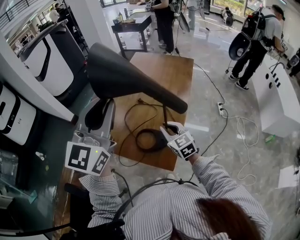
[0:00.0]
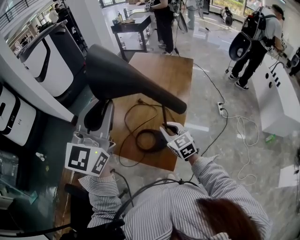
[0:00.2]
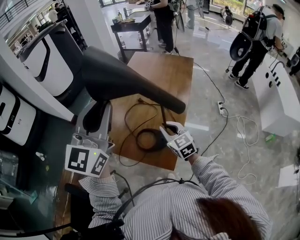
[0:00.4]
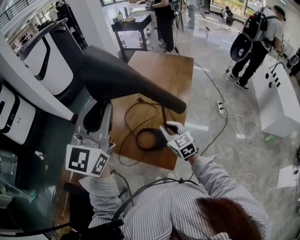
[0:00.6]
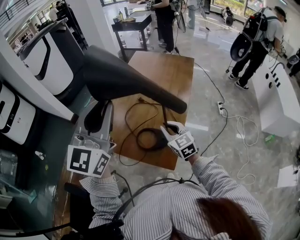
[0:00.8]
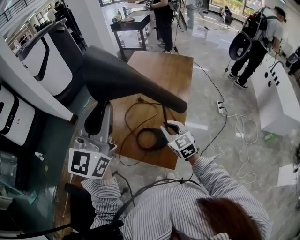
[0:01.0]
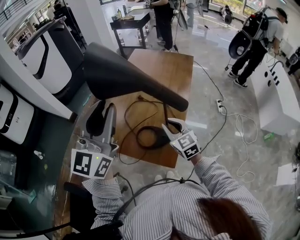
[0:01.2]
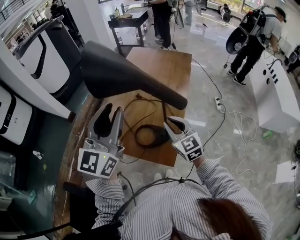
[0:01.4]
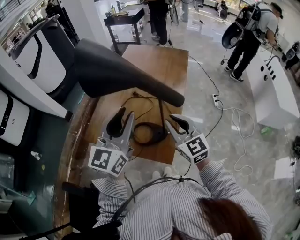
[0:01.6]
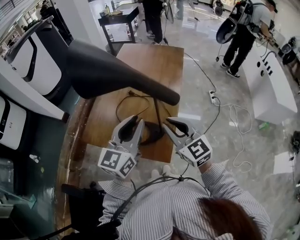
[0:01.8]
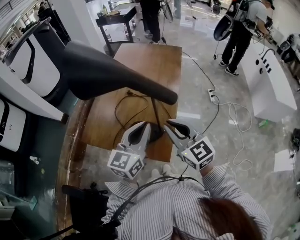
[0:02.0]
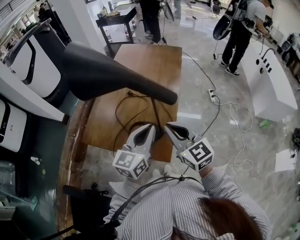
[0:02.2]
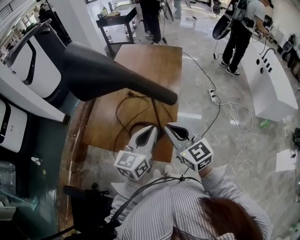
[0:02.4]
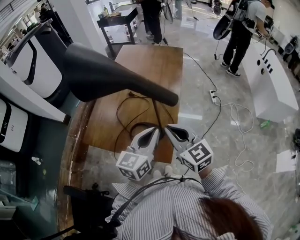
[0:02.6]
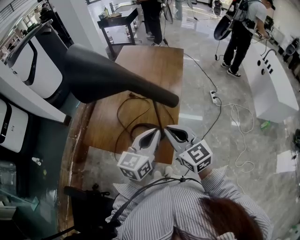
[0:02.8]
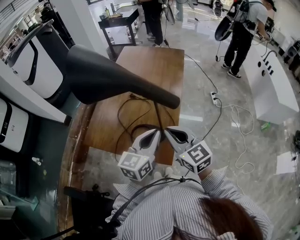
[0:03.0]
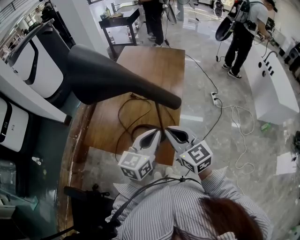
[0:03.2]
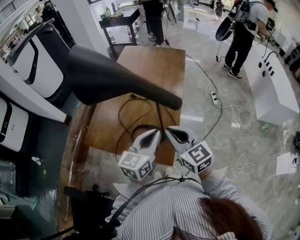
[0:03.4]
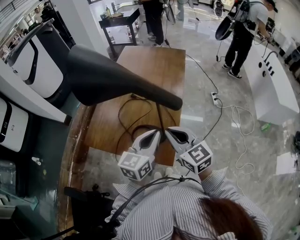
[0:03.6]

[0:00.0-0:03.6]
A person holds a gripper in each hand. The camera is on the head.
0:00.0 to 0:01.8: The right gripper moves upward and backward, about 10 cm. The left gripper shifts about 20 cm downward and to the right, and changes its angle by about 30 degrees.
0:01.8 to 0:03.6: The left gripper moves downward and to the right, approximately 10 cm.

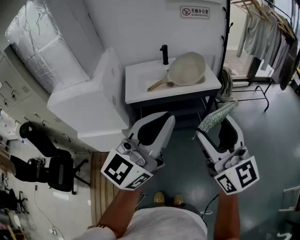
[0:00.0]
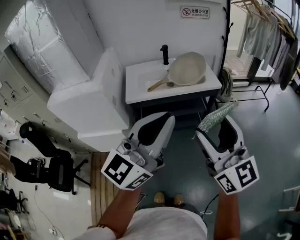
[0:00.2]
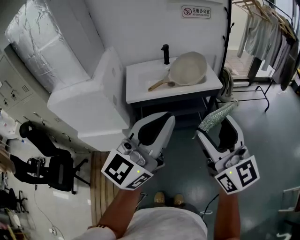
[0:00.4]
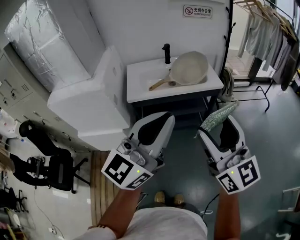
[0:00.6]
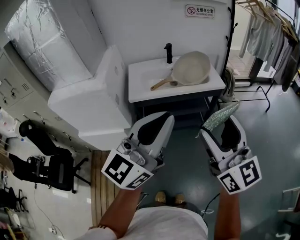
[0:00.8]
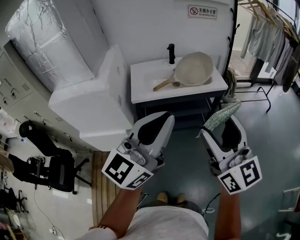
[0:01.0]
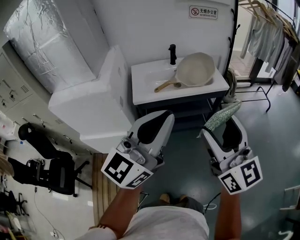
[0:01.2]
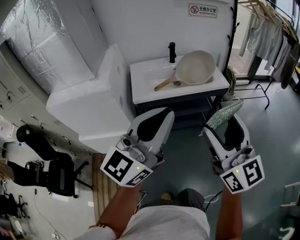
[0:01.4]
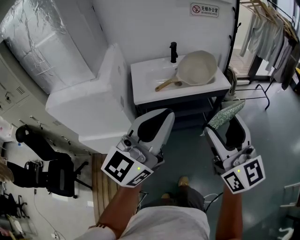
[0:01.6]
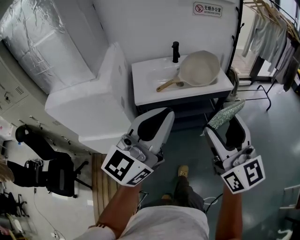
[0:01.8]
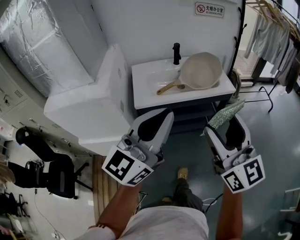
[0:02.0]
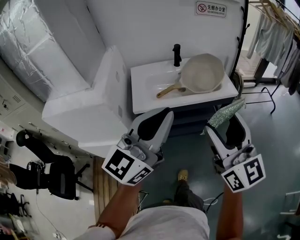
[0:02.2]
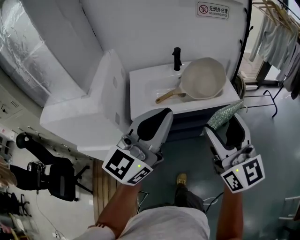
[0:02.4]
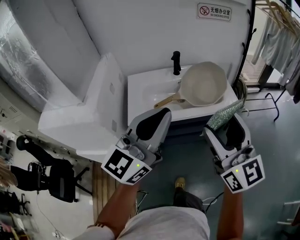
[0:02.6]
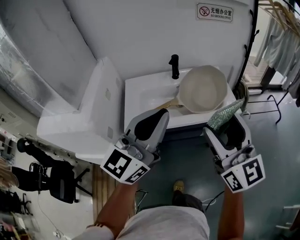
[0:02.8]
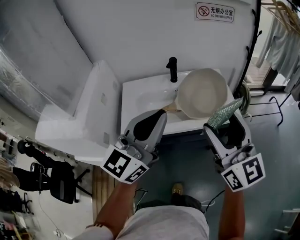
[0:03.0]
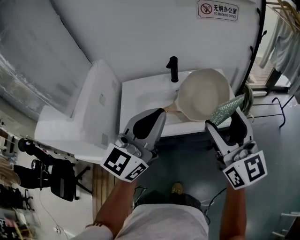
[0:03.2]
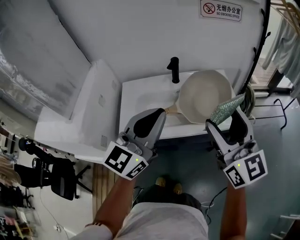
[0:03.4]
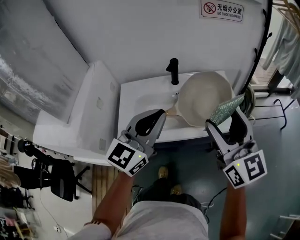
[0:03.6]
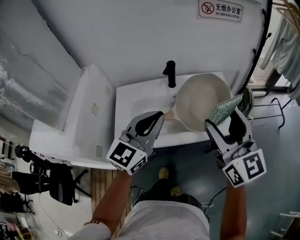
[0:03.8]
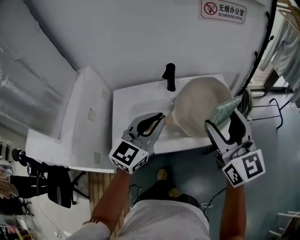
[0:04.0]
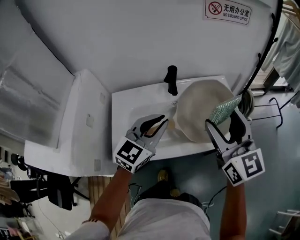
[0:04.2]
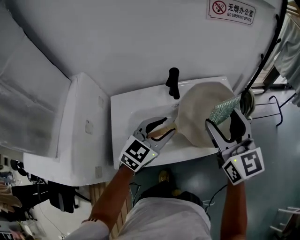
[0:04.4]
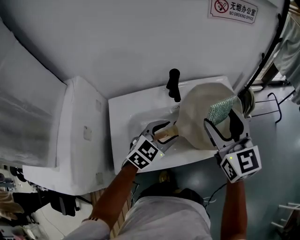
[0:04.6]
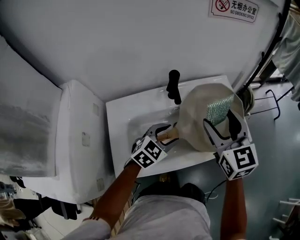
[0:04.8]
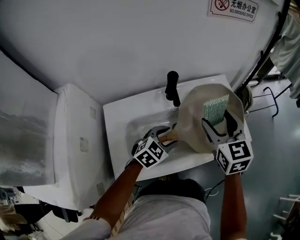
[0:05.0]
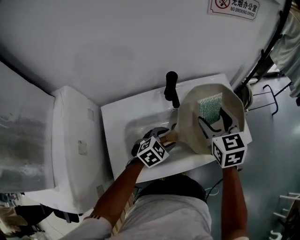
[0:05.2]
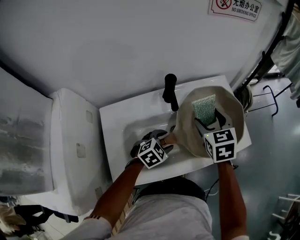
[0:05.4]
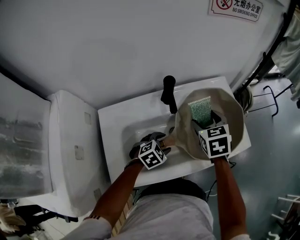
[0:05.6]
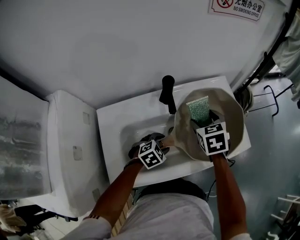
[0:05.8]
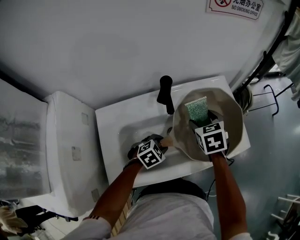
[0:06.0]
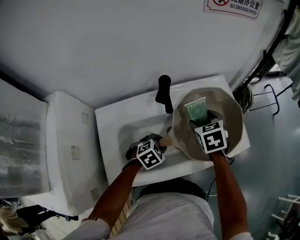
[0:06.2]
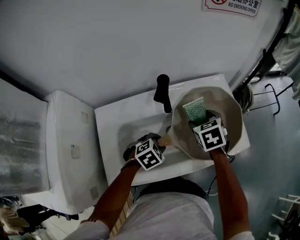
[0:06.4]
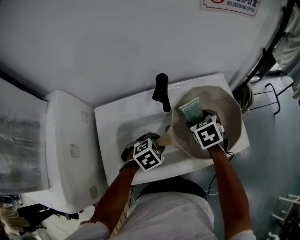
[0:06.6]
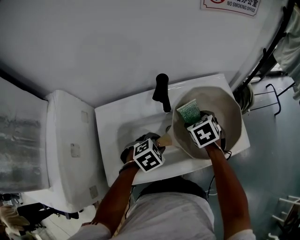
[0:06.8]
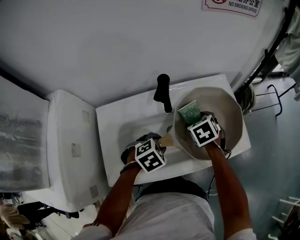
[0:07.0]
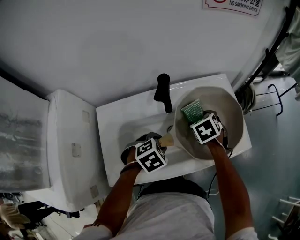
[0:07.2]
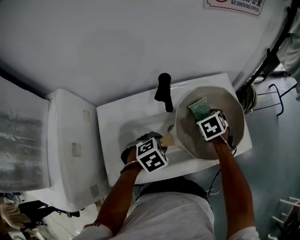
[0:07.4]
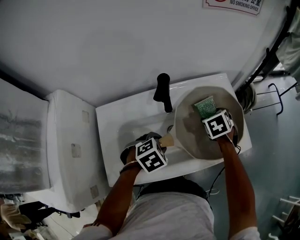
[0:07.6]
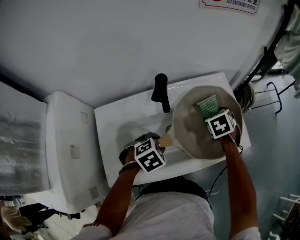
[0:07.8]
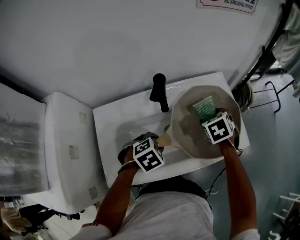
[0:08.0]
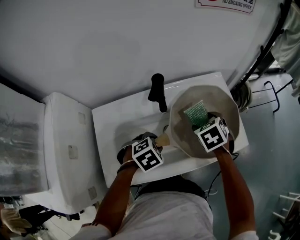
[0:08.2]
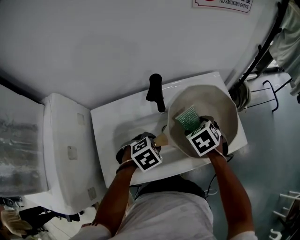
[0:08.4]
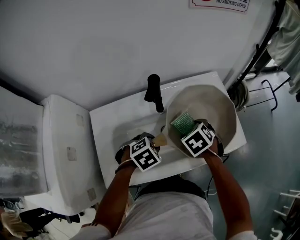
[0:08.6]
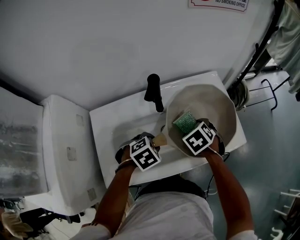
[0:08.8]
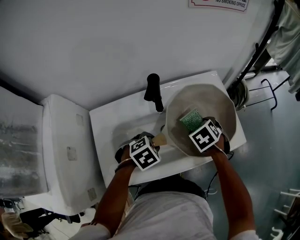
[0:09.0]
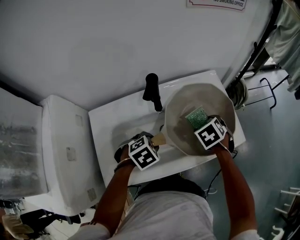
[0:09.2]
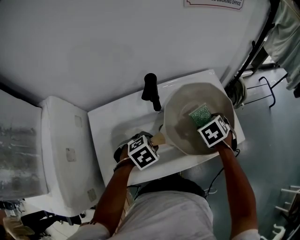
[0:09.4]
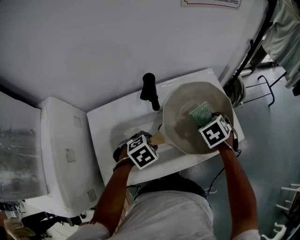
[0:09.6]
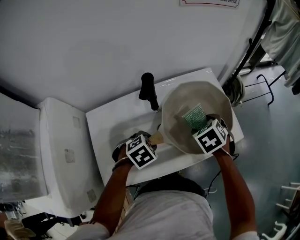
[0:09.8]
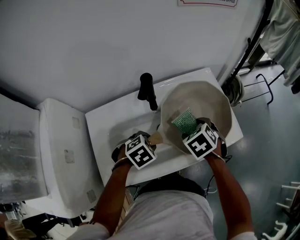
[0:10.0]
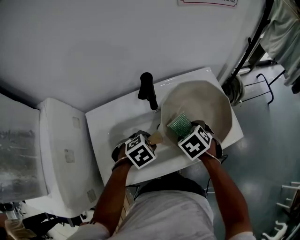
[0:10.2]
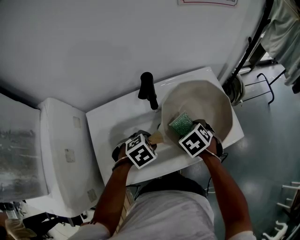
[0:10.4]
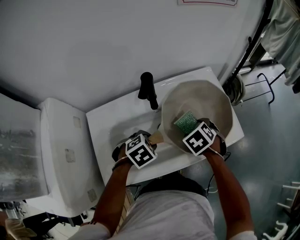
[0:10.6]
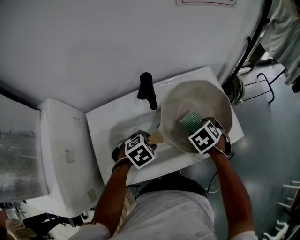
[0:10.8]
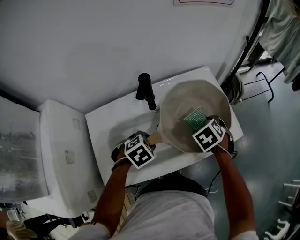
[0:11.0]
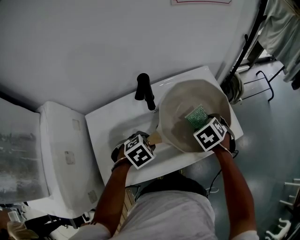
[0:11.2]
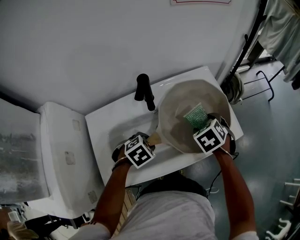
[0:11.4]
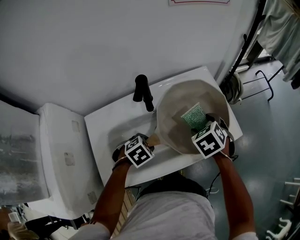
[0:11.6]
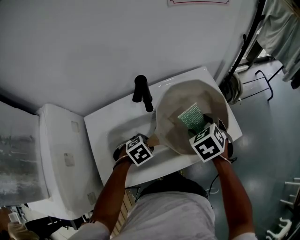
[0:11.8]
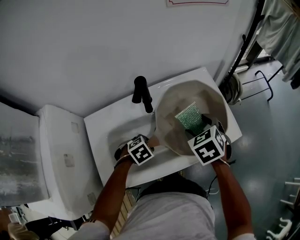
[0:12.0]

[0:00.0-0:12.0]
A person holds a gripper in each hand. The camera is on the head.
0:00.0 to 0:01.6: Both grippers move to the left, roughly 10 cm.
0:01.6 to 0:03.0: Both grippers move forward, some 30 cm.
0:03.0 to 0:04.4: The left gripper heads forward and downward, covering some 30 cm, angles its fingers downward, by roughly 30 degrees, and opens. The right gripper heads forward, covering roughly 20 cm.
0:04.4 to 0:06.0: The right gripper heads downward and forward, covering about 25 cm, and tilts its fingers about 50 degrees downward. The left gripper moves downward, some 25 cm, tips its fingers downward by about 40 degrees, and opens, then closes once more.
0:06.0 to 0:07.6: The left gripper moves upward, about 5 cm; the right gripper shifts some 5 cm downward.
0:07.6 to 0:09.0: The right gripper travels backward by approximately 5 cm.
0:09.0 to 0:10.4: The grippers make only small movements.
0:10.4 to 0:12.0: The left gripper shifts some 5 cm downward, while the right gripper is displaced upward by roughly 5 cm.

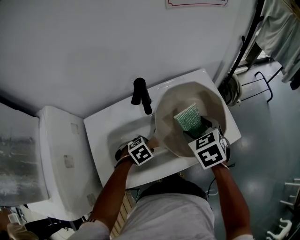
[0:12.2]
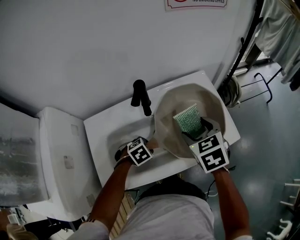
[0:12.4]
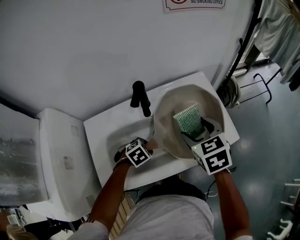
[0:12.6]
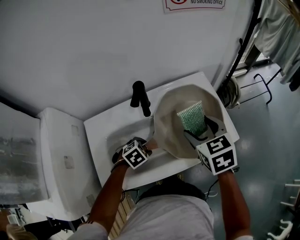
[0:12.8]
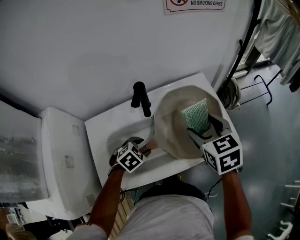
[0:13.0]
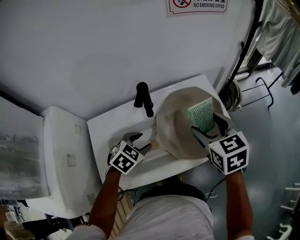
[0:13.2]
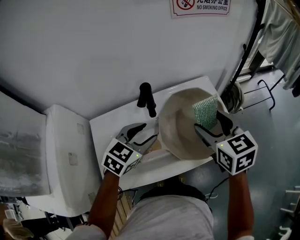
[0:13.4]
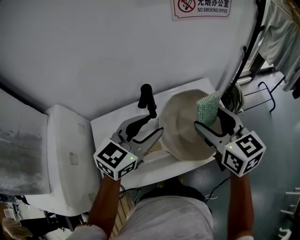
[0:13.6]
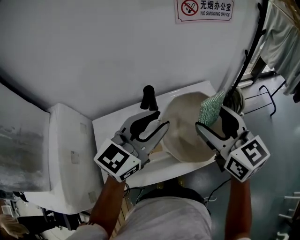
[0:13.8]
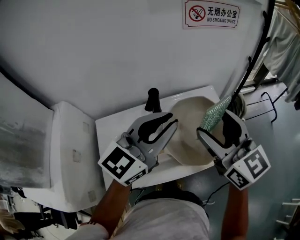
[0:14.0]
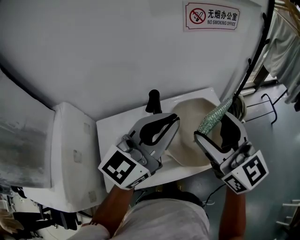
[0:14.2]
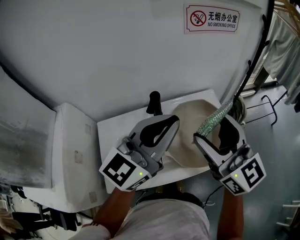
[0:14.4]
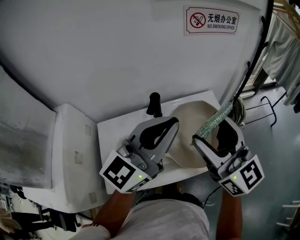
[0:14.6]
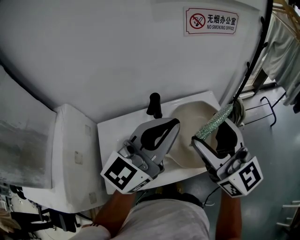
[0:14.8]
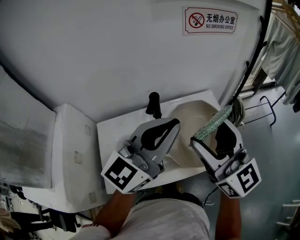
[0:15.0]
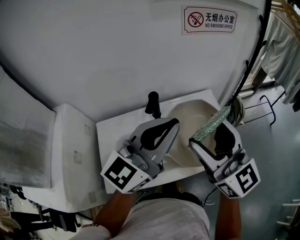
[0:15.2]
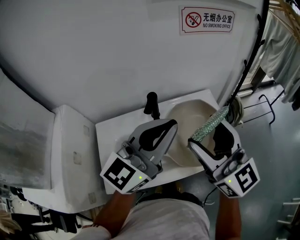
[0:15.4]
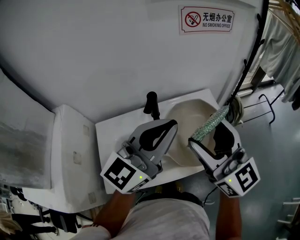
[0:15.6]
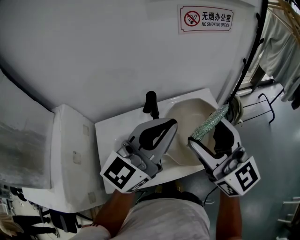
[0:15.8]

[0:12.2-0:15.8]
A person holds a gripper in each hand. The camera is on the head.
0:12.2 to 0:14.0: The left gripper moves upward, about 40 cm, and points its fingers approximately 80 degrees further upward; the right gripper is displaced upward by roughly 20 cm, and points its fingers roughly 50 degrees further upward.
0:14.0 to 0:15.8: The grippers make only small movements.

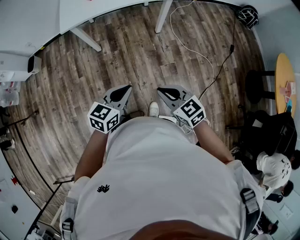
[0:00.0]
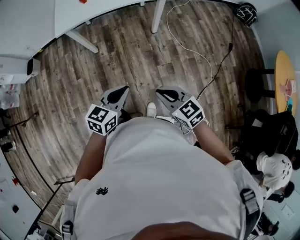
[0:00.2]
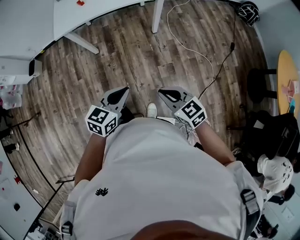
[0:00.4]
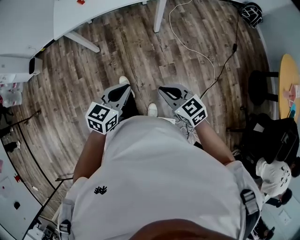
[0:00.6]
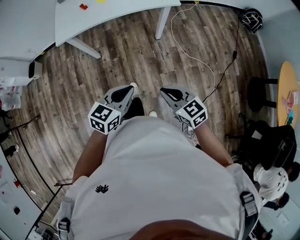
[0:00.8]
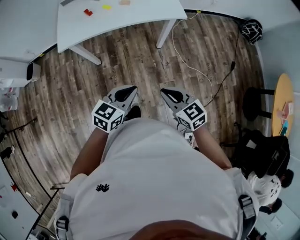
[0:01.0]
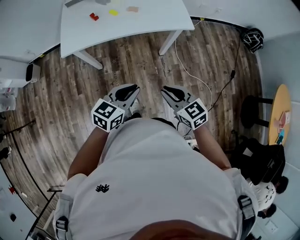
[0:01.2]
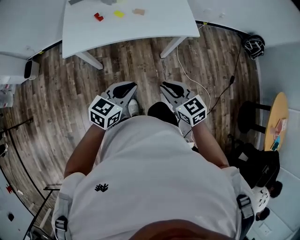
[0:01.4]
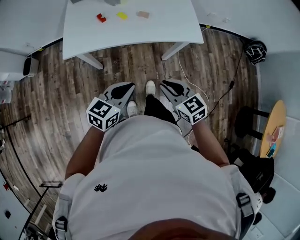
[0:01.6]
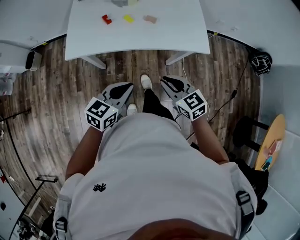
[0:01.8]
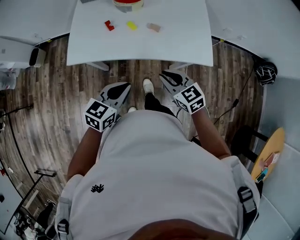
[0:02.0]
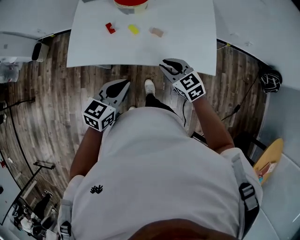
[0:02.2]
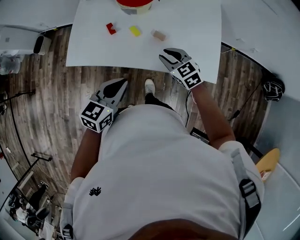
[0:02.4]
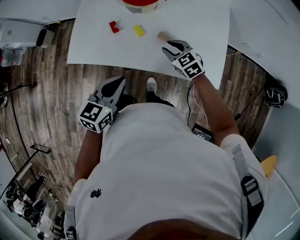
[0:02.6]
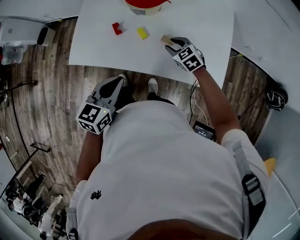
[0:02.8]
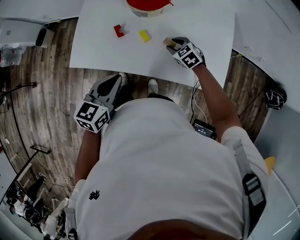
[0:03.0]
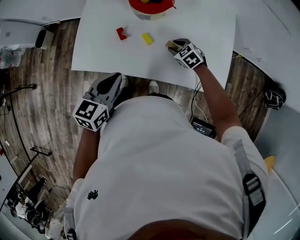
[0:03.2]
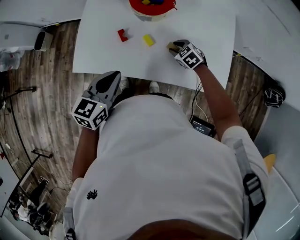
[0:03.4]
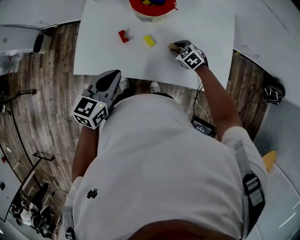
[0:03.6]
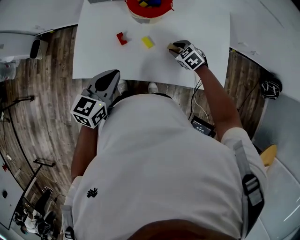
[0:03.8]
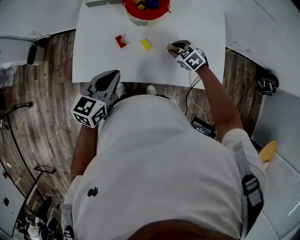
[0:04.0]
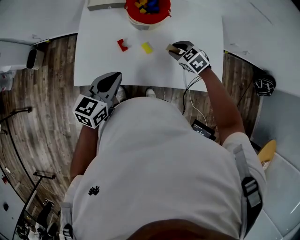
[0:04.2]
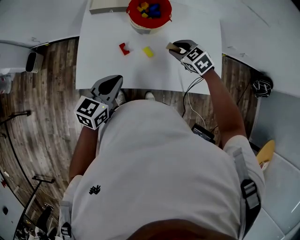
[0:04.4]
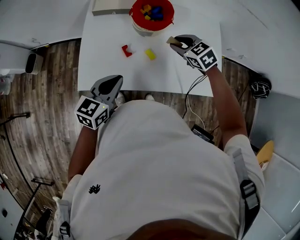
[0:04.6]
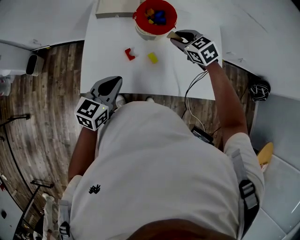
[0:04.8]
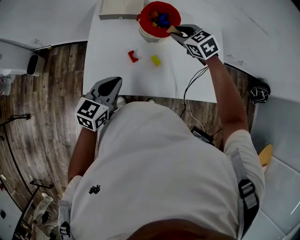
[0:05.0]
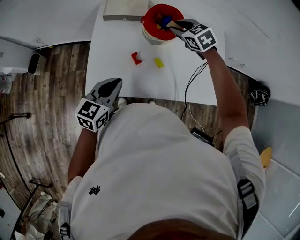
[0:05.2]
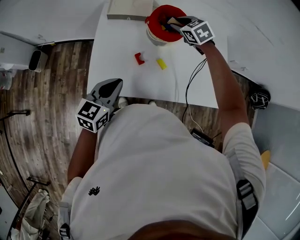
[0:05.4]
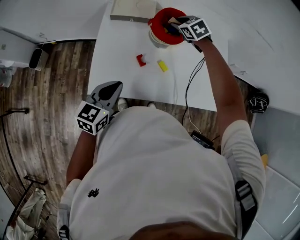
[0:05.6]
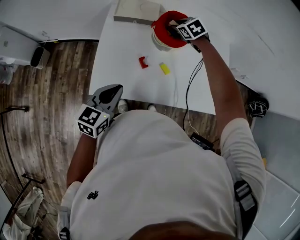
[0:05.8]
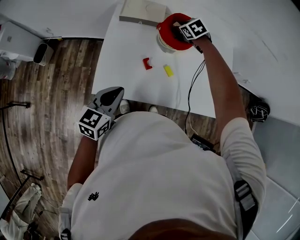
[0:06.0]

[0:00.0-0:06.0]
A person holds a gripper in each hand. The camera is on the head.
0:00.0 to 0:01.6: Both grippers move forward, approximately 30 cm.
0:01.6 to 0:03.0: The right gripper is displaced forward by about 40 cm, rotates about 30 degrees, and opens up. The left gripper goes approximately 25 cm forward, and turns by some 30 degrees.
0:03.0 to 0:04.4: The right gripper is displaced upward by roughly 15 cm. Meanwhile the left gripper moves to the left and forward, about 10 cm.
0:04.4 to 0:06.0: The right gripper moves forward and to the left, some 25 cm. The left gripper shifts roughly 10 cm to the left.
